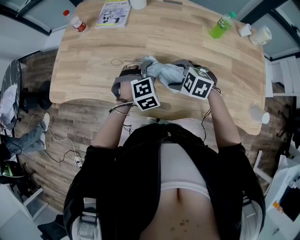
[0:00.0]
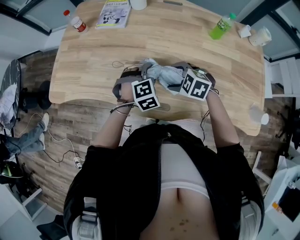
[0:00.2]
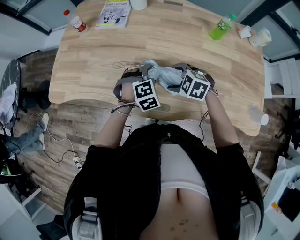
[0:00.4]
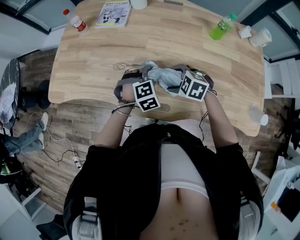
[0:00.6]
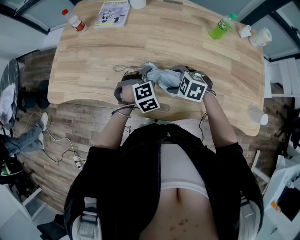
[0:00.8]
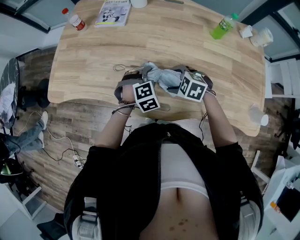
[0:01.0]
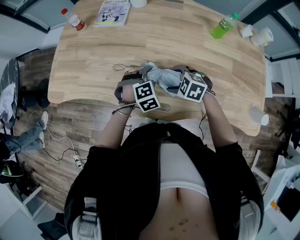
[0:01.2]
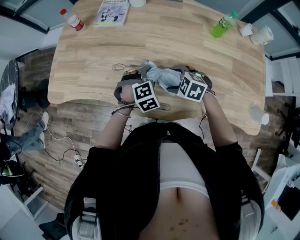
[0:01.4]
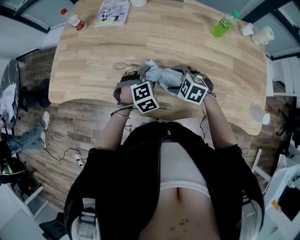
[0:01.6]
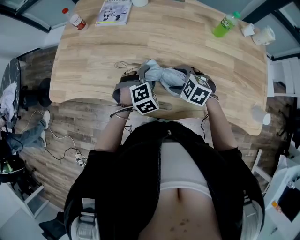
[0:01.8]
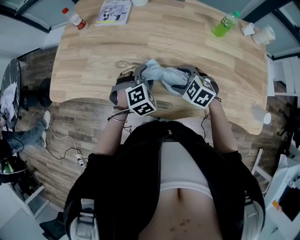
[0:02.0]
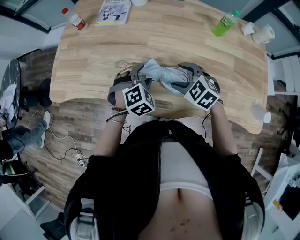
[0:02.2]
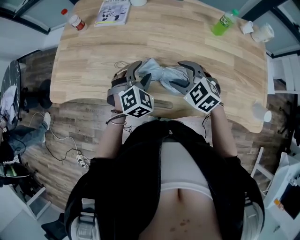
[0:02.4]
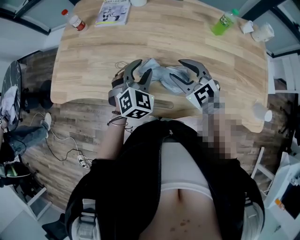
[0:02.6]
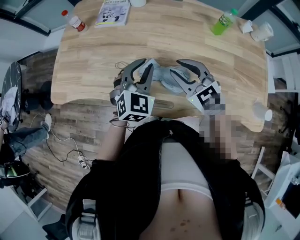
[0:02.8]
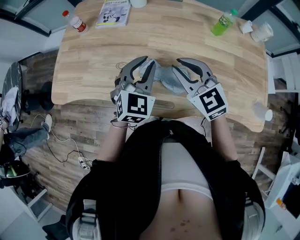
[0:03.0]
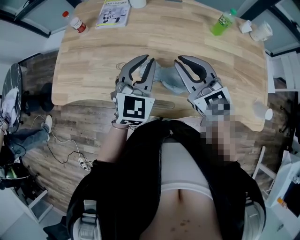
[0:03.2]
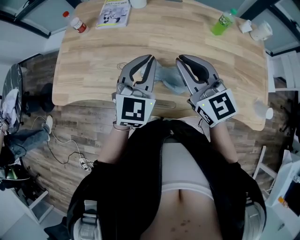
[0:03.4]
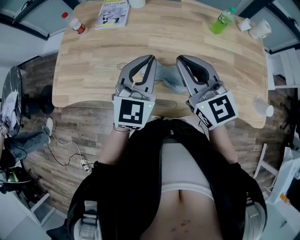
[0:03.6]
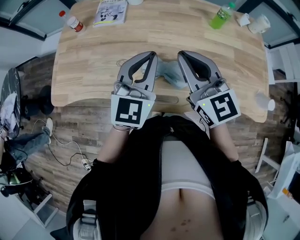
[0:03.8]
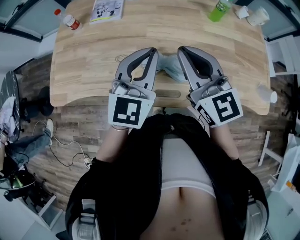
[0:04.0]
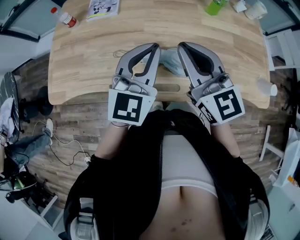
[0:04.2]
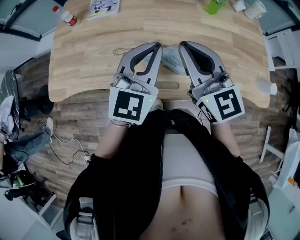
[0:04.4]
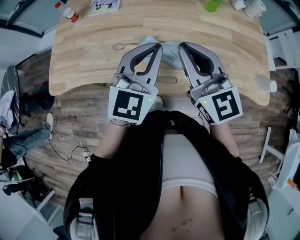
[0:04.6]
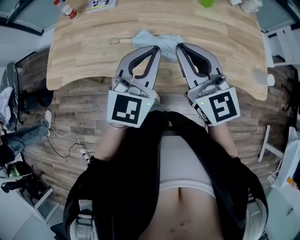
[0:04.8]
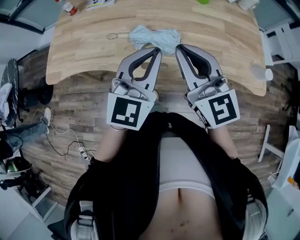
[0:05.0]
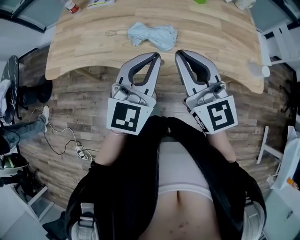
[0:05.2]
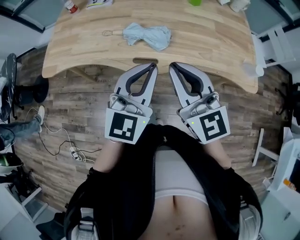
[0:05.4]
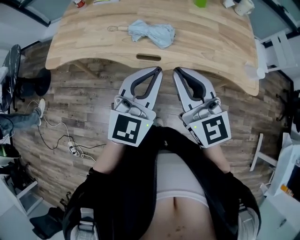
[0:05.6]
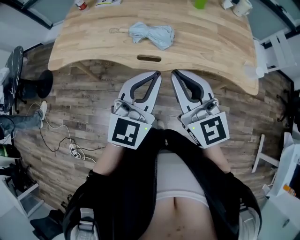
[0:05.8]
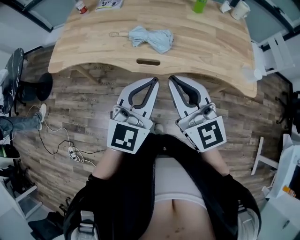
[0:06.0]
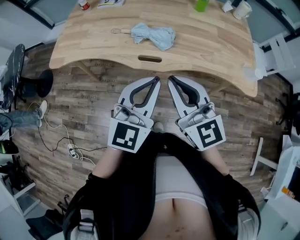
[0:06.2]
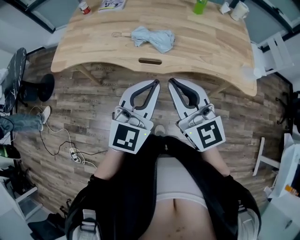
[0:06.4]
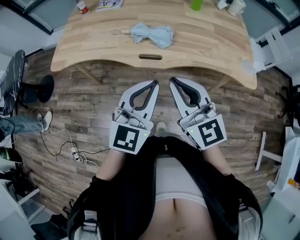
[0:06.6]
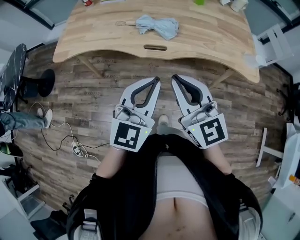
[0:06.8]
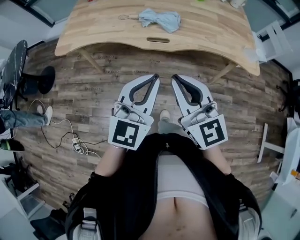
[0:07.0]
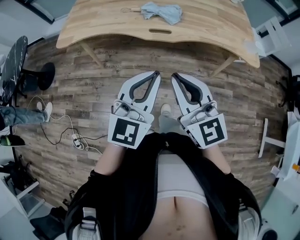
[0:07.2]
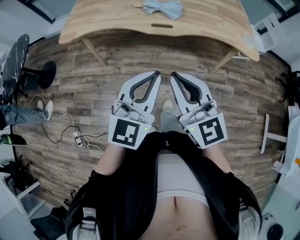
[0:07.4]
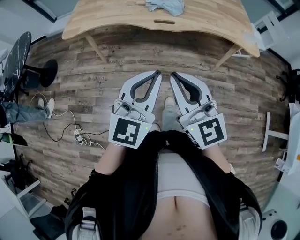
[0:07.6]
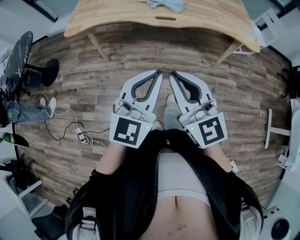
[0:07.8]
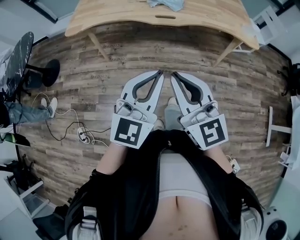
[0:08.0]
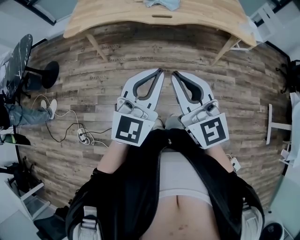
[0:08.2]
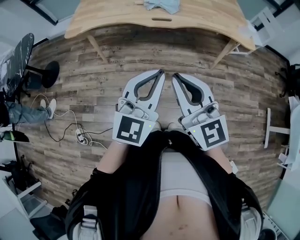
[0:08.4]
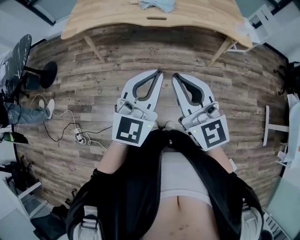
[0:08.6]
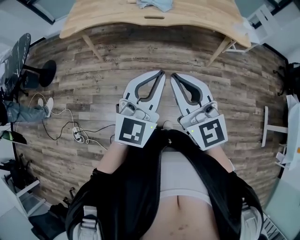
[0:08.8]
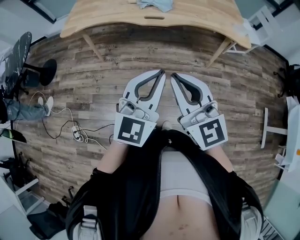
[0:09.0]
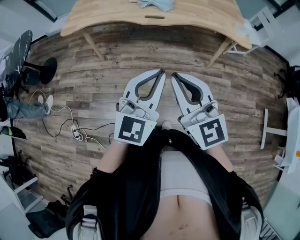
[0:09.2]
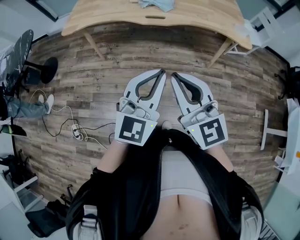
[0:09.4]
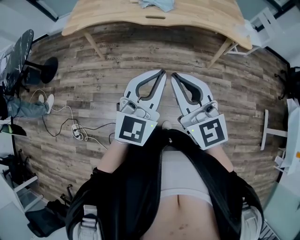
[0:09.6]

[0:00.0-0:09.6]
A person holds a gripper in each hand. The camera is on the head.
0.0 to 1.6 s: The right gripper shifts roughly 5 cm downward.
1.6 to 3.2 s: The two grippers go about 20 cm upward. The right gripper tips its fingers upward by roughly 50 degrees, and closes up; the left gripper angles its fingers upward, by some 40 degrees, and closes its fingers.
3.2 to 4.8 s: Both grippers move backward, roughly 15 cm.
4.8 to 6.4 s: Both grippers travel together backward, roughly 20 cm.
6.4 to 8.0 s: Both grippers move backward, roughly 25 cm.
8.0 to 9.6 s: The two grippers go some 5 cm to the right.

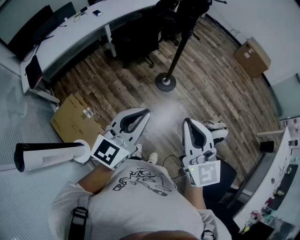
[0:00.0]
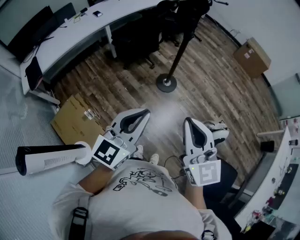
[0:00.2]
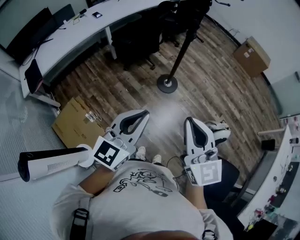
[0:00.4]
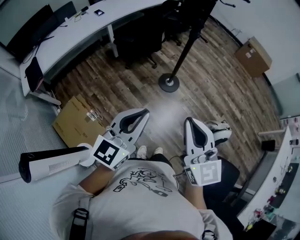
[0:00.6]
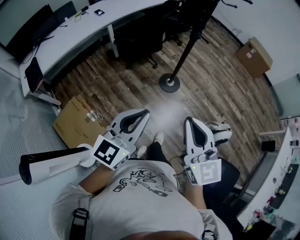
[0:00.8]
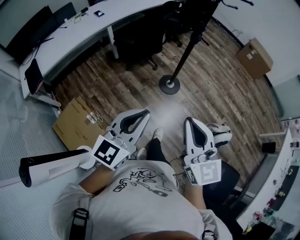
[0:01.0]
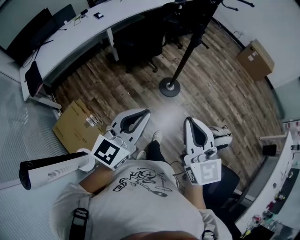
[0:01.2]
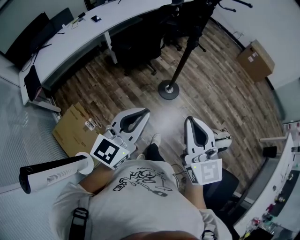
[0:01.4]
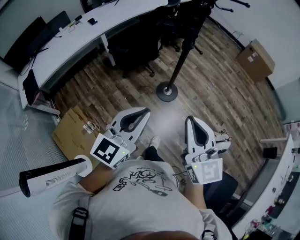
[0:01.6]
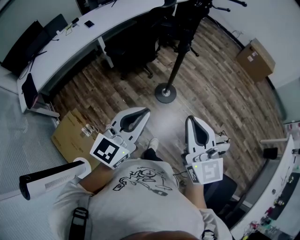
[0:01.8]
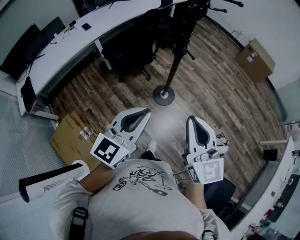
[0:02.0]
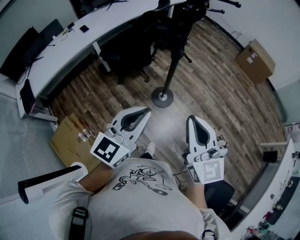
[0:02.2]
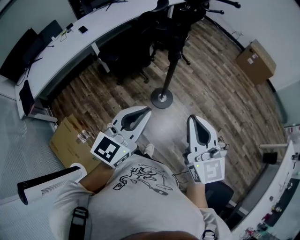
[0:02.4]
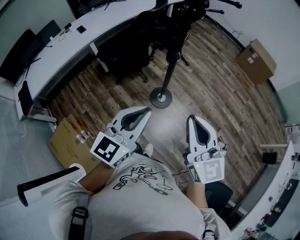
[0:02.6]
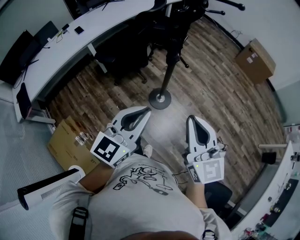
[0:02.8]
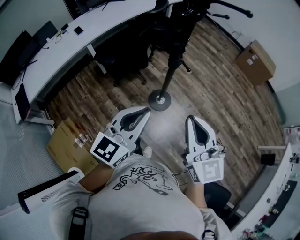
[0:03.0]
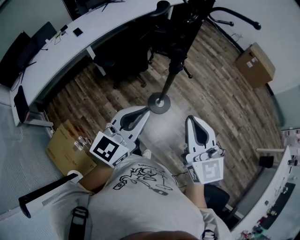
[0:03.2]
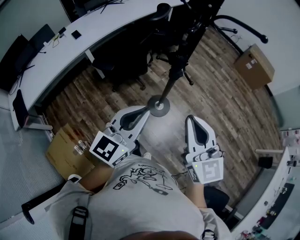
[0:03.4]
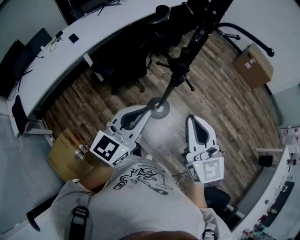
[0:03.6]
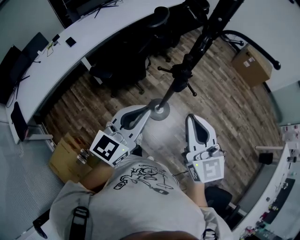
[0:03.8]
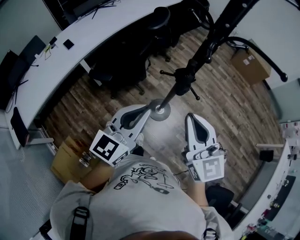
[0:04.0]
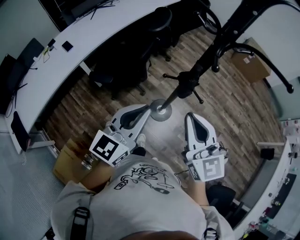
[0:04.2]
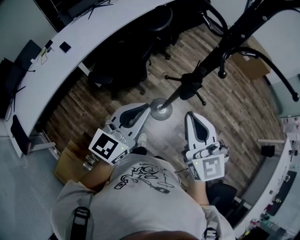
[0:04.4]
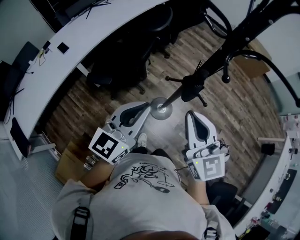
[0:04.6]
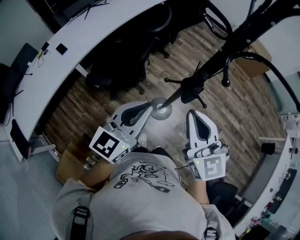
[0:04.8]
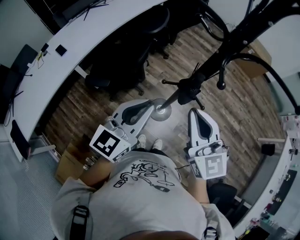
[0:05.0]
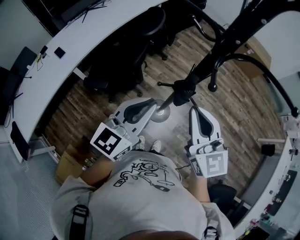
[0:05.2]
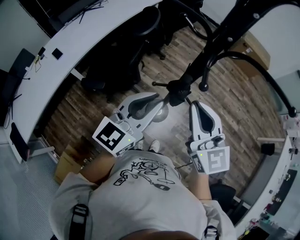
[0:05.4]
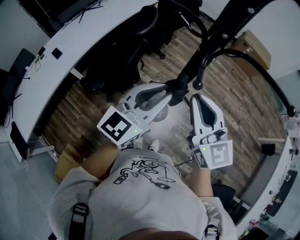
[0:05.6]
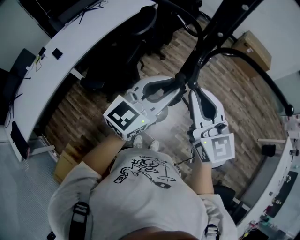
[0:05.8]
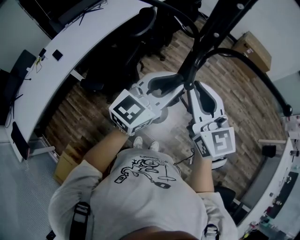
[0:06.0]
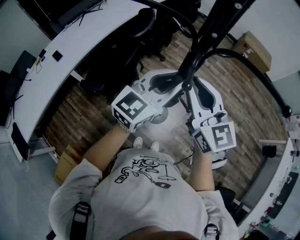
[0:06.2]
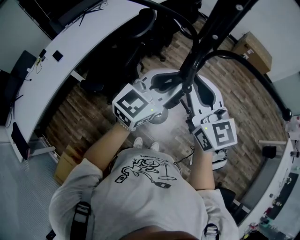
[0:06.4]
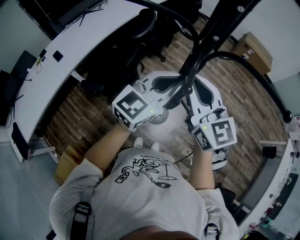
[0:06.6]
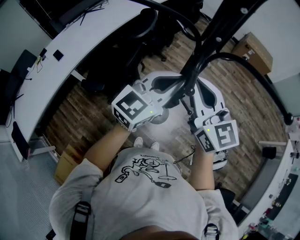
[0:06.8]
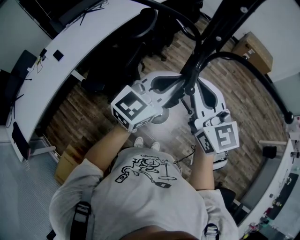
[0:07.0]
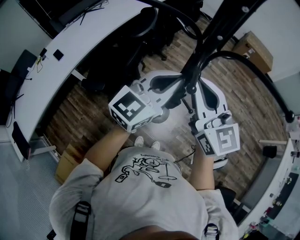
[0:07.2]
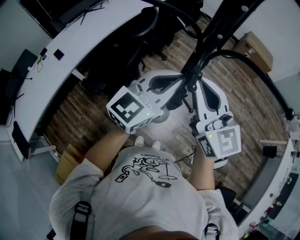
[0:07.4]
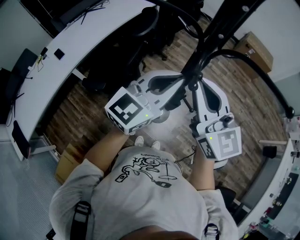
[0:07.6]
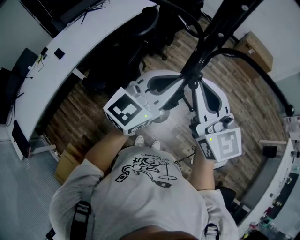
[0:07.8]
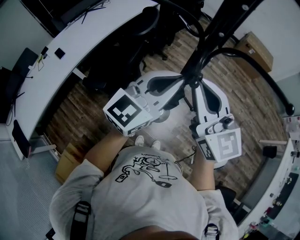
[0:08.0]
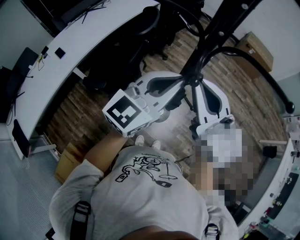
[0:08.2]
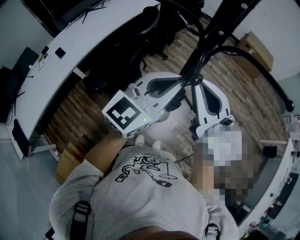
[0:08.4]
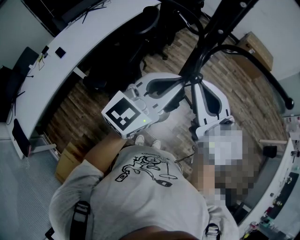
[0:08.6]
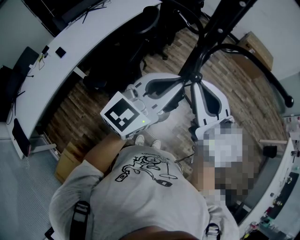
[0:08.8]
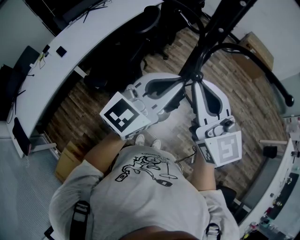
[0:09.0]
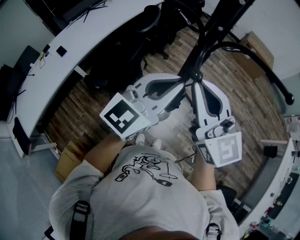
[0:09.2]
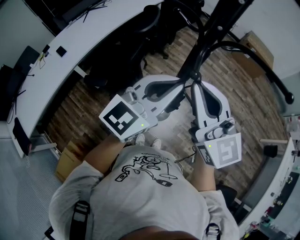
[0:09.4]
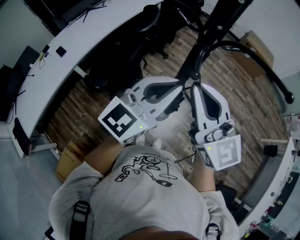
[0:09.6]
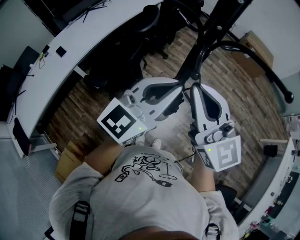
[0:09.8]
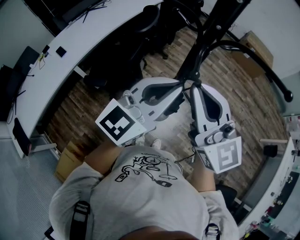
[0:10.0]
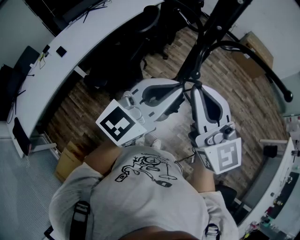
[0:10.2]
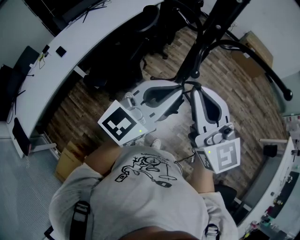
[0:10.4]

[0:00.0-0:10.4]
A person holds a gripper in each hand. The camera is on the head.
0.0 to 1.4 s: Both grippers move forward, some 15 cm.
1.4 to 3.0 s: The two grippers go roughly 25 cm forward and to the right.
3.0 to 4.4 s: Both grippers move forward and to the left, approximately 30 cm.
4.4 to 6.0 s: Both grippers move forward and to the right, approximately 20 cm.
6.0 to 9.0 s: The grippers make only small movements.
9.0 to 10.4 s: The grippers move only a little.

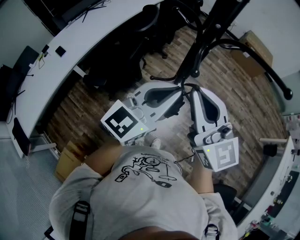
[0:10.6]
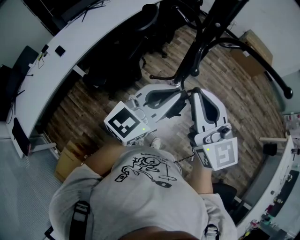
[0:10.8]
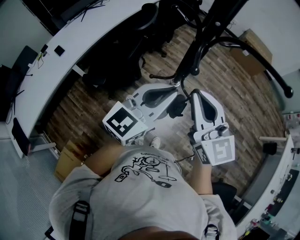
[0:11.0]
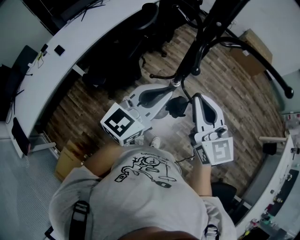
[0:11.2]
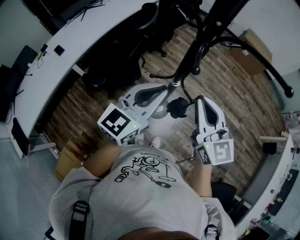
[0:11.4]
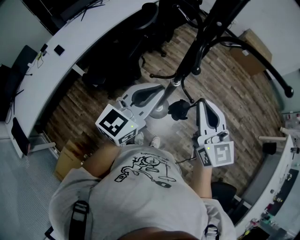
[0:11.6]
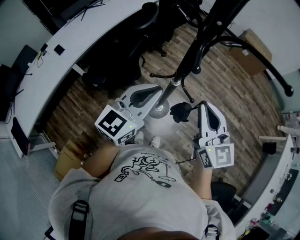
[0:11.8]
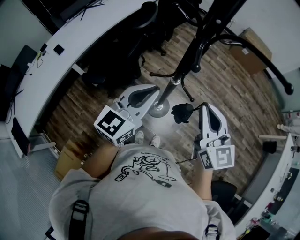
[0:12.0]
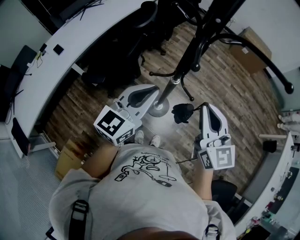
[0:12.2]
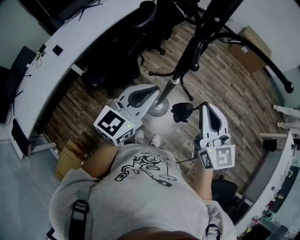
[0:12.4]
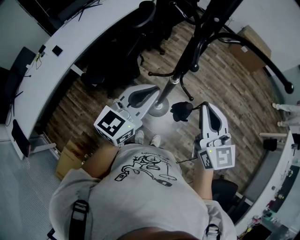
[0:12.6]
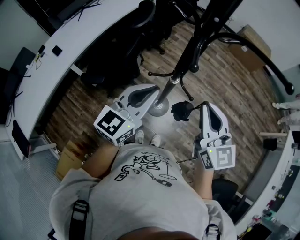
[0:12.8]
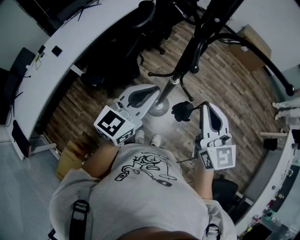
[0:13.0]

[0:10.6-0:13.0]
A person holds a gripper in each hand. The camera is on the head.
10.6 to 11.8 s: The left gripper ends up about 5 cm from where it was. The right gripper shifts about 10 cm downward and to the right.
11.8 to 13.0 s: The two grippers keep their place.

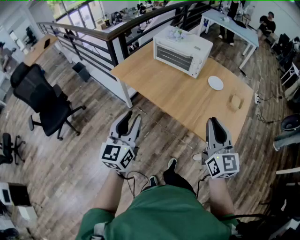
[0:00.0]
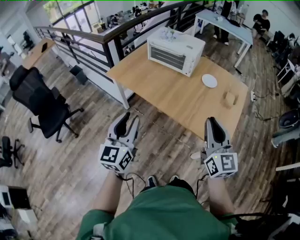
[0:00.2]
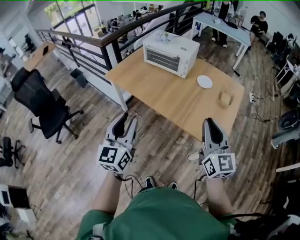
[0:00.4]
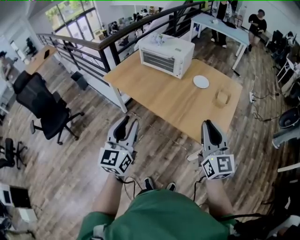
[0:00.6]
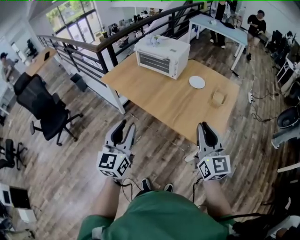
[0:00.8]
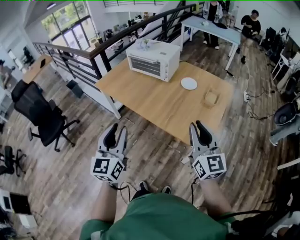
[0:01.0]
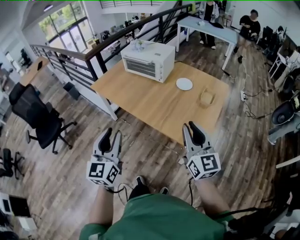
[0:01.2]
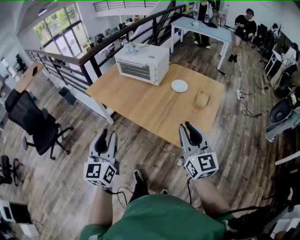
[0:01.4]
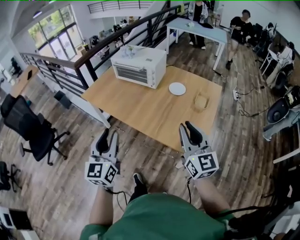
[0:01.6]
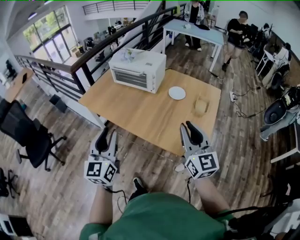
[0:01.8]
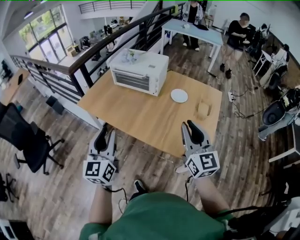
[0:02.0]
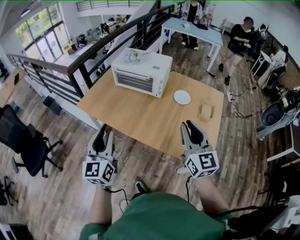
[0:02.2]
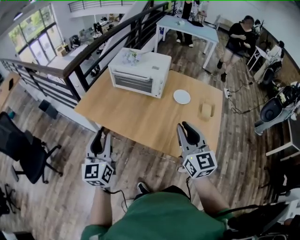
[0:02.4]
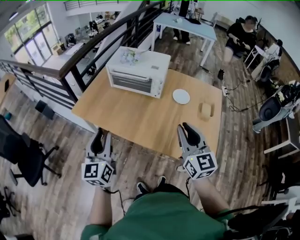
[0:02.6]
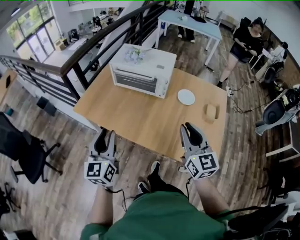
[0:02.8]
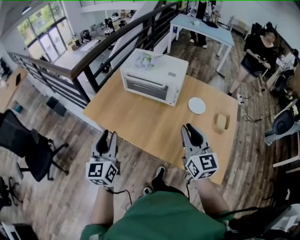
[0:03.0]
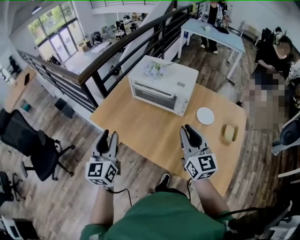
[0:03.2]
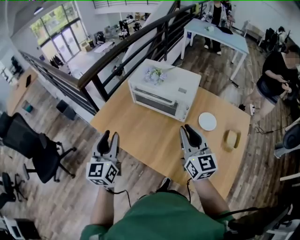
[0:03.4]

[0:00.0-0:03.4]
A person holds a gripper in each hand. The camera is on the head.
0.0 to 1.6 s: The two grippers go roughly 15 cm to the right.
1.6 to 3.4 s: The pair of grippers is taken forward and to the left, roughly 40 cm.
